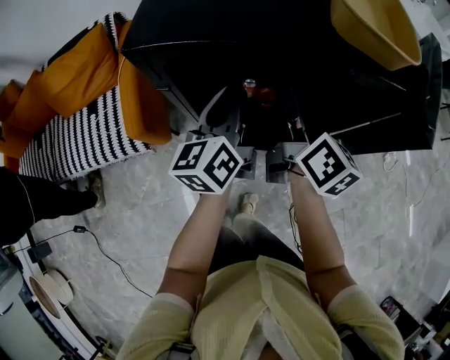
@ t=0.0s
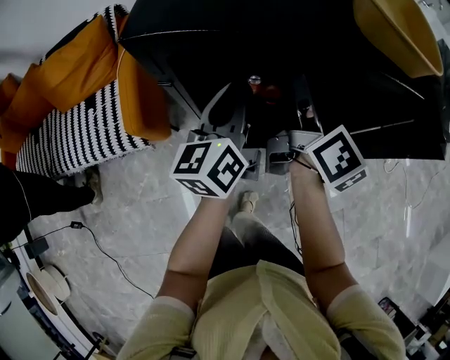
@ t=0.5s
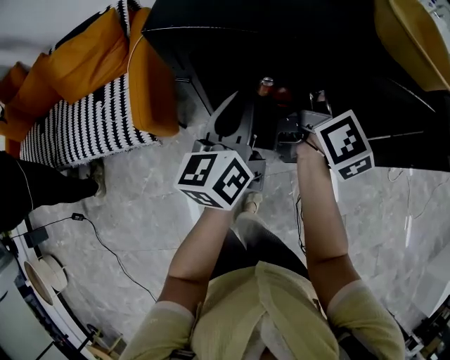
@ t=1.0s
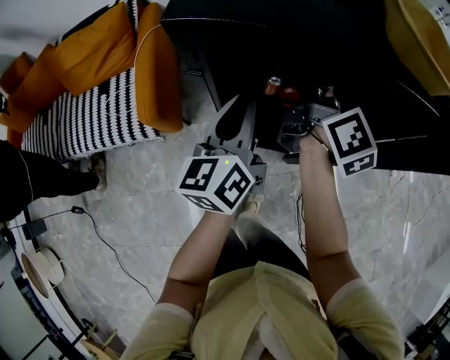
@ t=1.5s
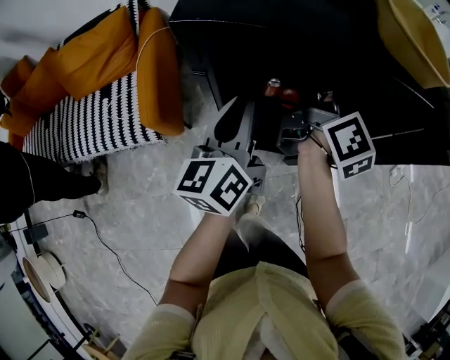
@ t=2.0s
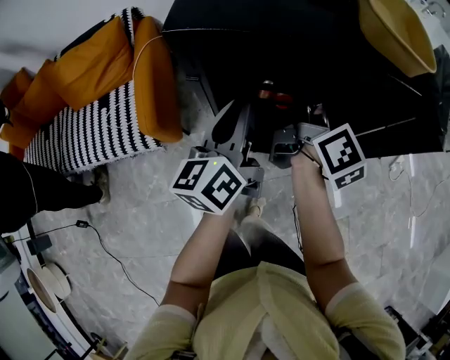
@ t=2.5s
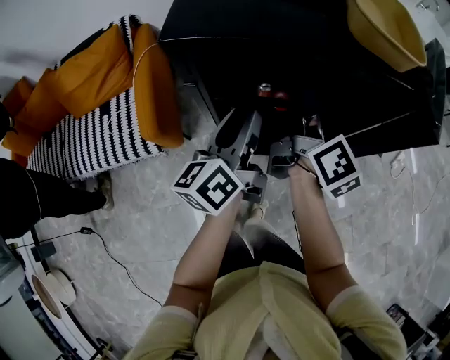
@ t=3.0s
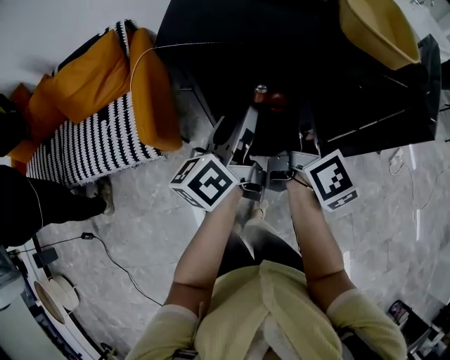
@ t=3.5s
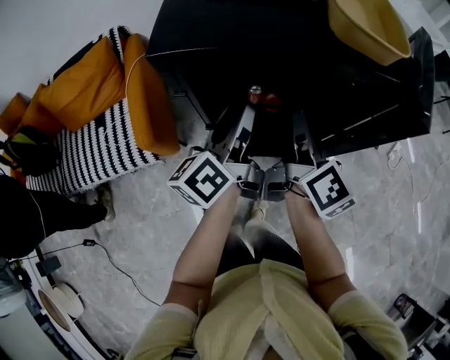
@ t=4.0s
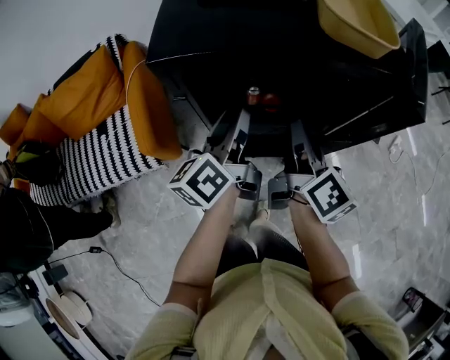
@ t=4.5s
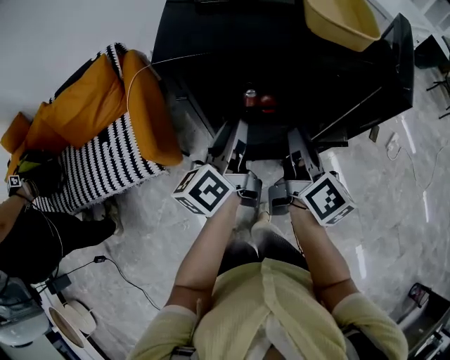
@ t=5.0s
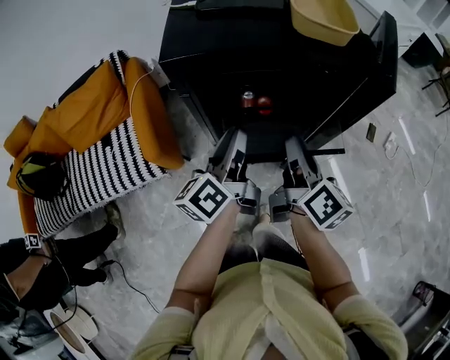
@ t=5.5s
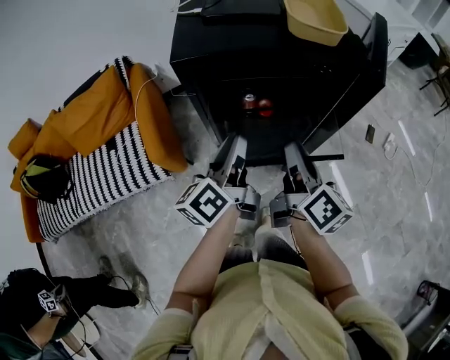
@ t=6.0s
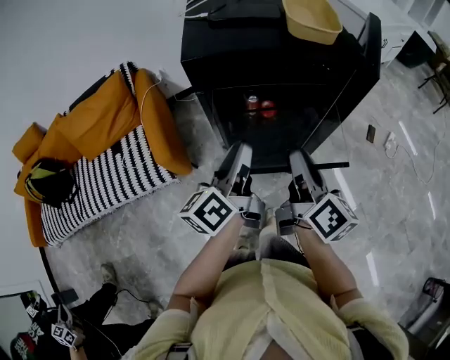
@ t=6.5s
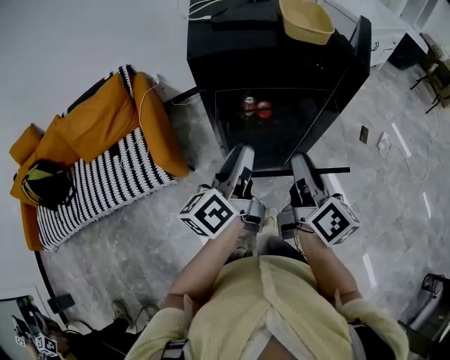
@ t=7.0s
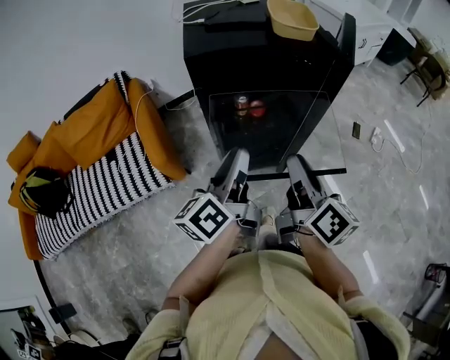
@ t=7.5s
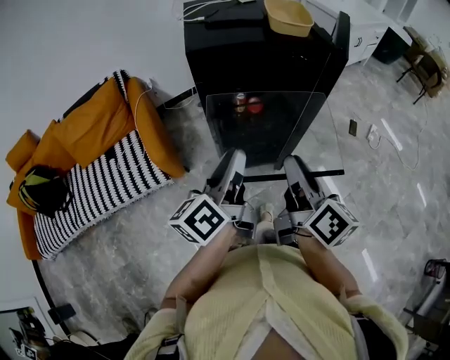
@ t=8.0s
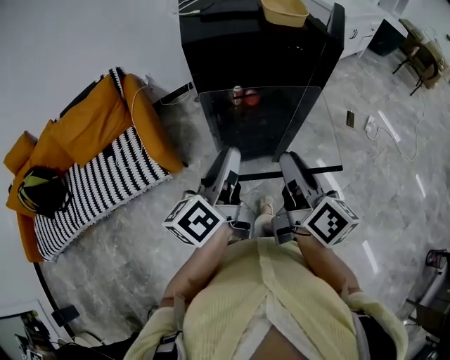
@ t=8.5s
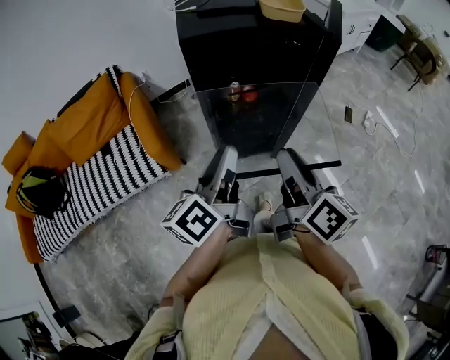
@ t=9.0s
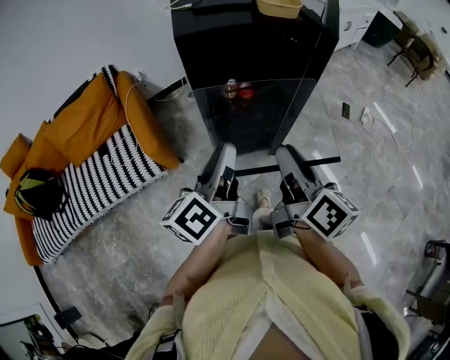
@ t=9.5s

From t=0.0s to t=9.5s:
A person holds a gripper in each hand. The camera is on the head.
From t=0.0s to t=2.0s: The left gripper changes place by roughly 5 cm.
From t=2.0s to t=4.0s: The right gripper heads backward, covering roughly 10 cm, while the left gripper rotates about 20 degrees, and opens its fingers.
From t=4.0s to t=5.5s: The grippers both shift backward by approximately 10 cm.
From t=5.5s to t=7.5s: The grippers both shift backward and upward by some 15 cm.
From t=7.5s to t=9.5s: The grippers stay close to where they were, moving slightly.

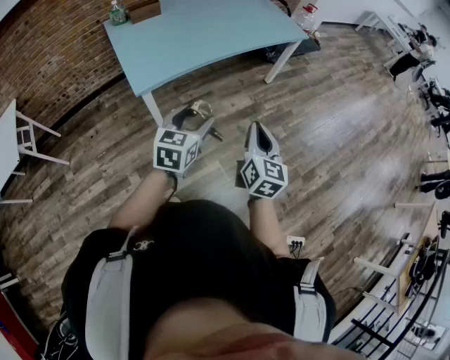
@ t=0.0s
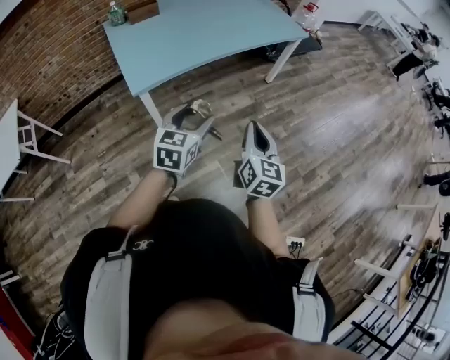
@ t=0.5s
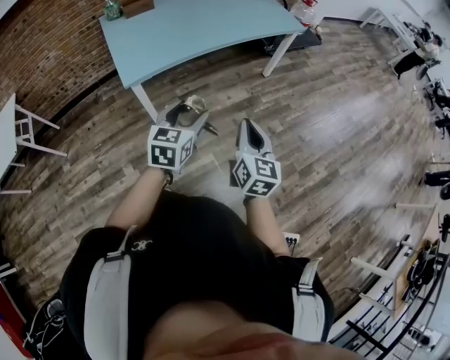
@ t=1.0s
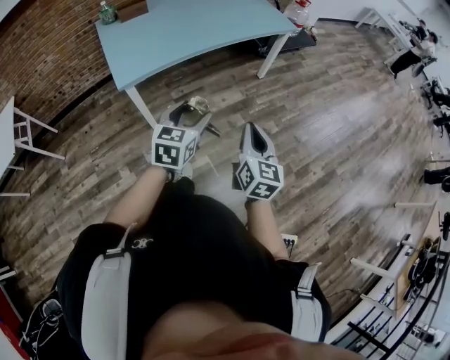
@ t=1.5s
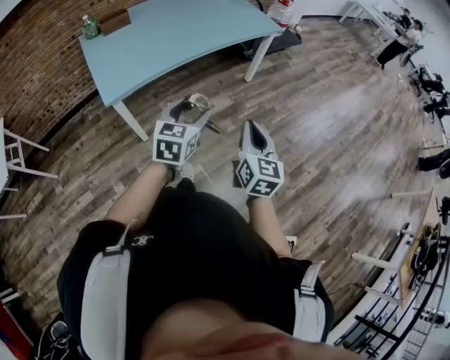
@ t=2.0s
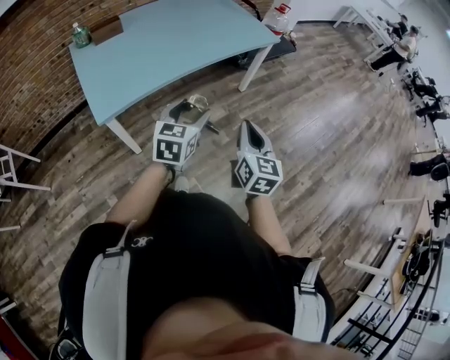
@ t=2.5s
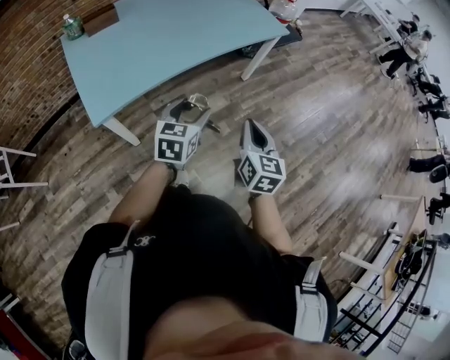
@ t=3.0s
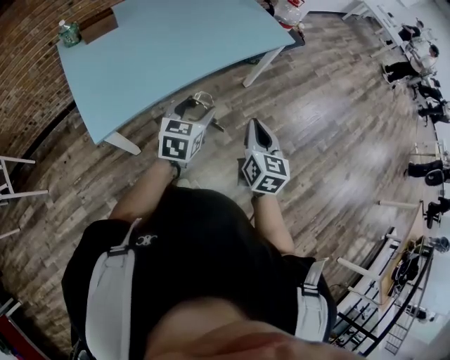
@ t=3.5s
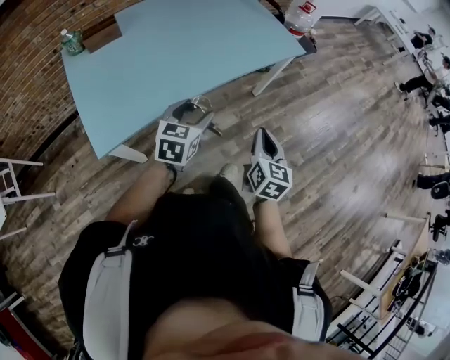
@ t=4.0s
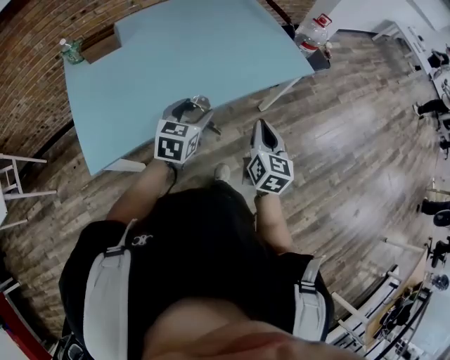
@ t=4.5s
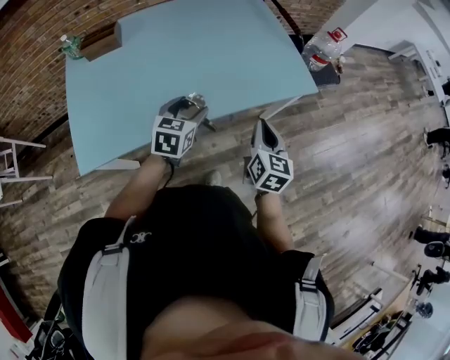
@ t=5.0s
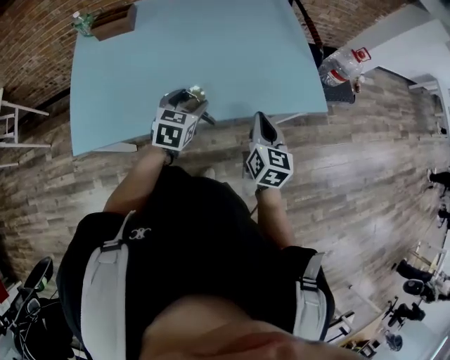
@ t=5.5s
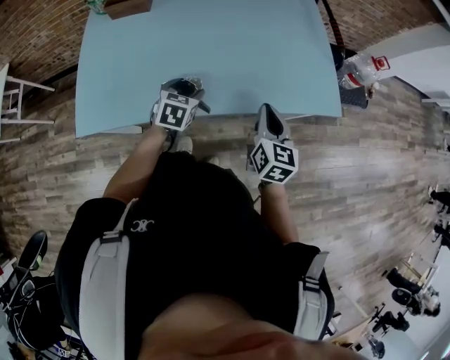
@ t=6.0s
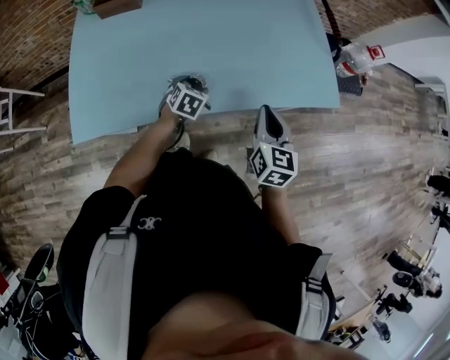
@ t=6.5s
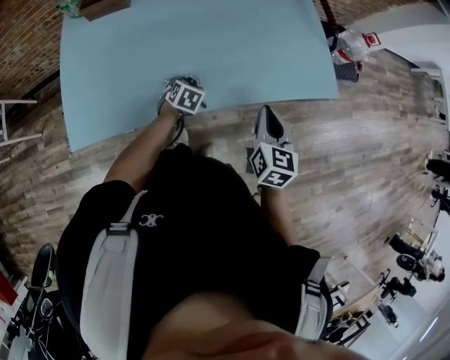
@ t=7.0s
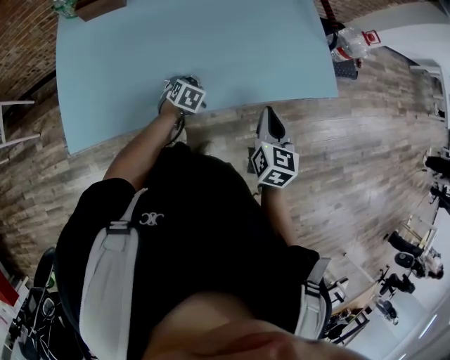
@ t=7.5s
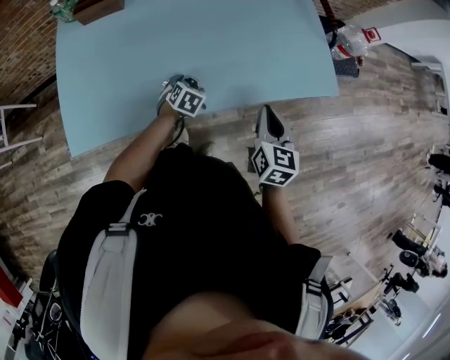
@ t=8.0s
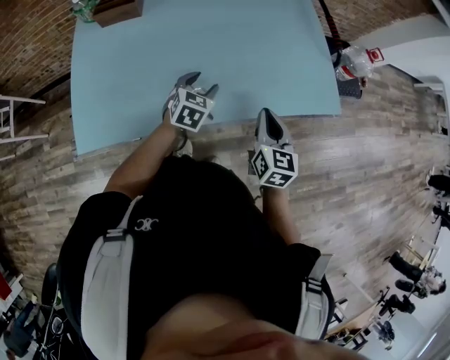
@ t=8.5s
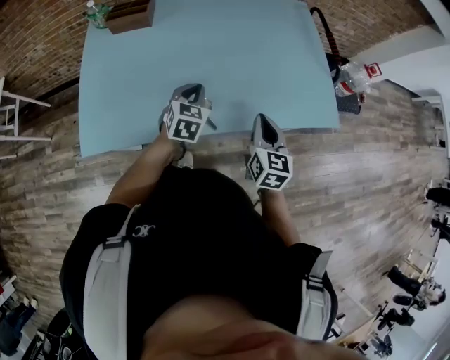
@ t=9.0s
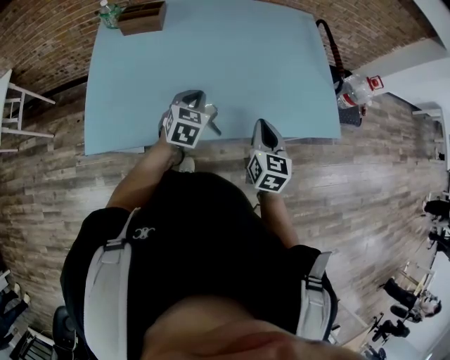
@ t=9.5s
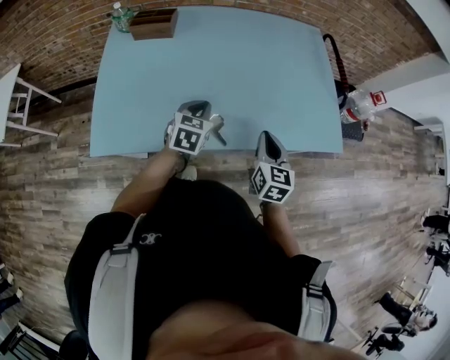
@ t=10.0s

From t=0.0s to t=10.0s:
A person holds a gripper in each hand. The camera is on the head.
From t=0.0s to t=2.0s: The grippers both shift to the right by approximately 10 cm.
From t=2.0s to t=4.0s: The grippers both shift forward by approximately 25 cm.
From t=4.0s to t=6.0s: The left gripper moves about 25 cm, and turns by approximately 30 degrees, while the right gripper changes place by approximately 30 cm, and rotates roughly 30 degrees.
From t=6.0s to t=8.0s: The left gripper moves downward, roughly 15 cm.
From t=8.0s to t=10.0s: The right gripper shifts some 5 cm to the left. Meanwhile the left gripper shifts some 20 cm upward, swivels some 30 degrees, and closes.

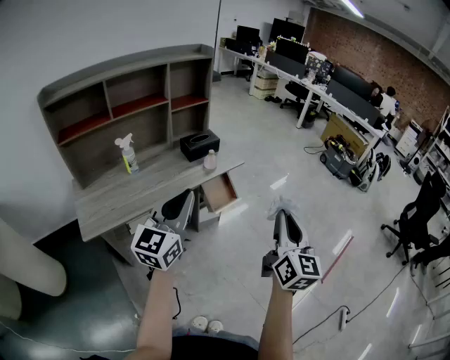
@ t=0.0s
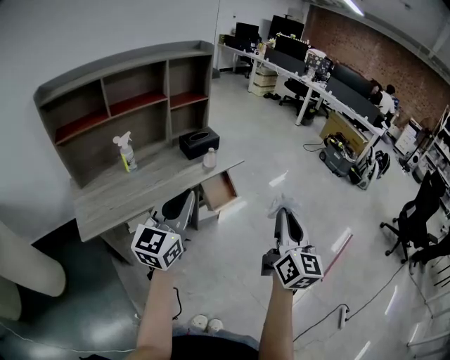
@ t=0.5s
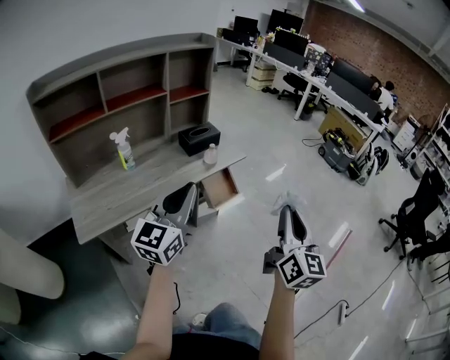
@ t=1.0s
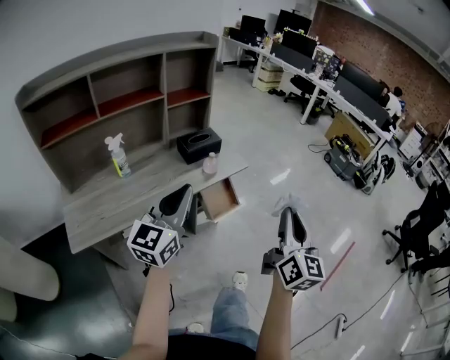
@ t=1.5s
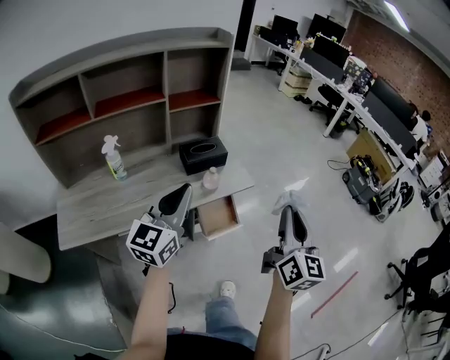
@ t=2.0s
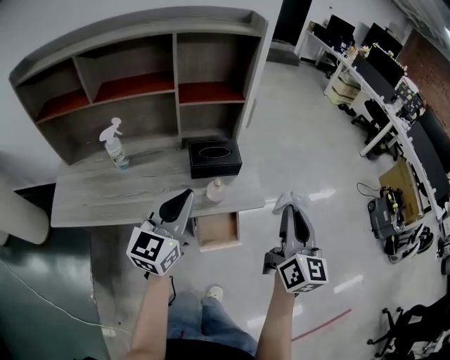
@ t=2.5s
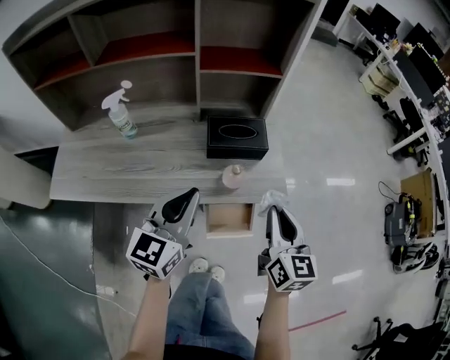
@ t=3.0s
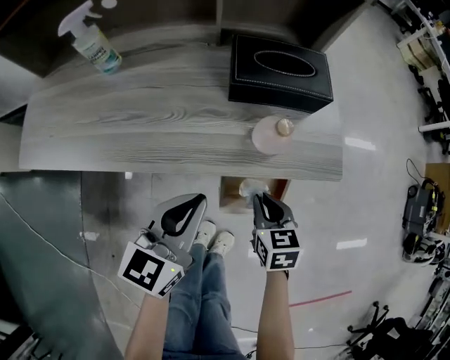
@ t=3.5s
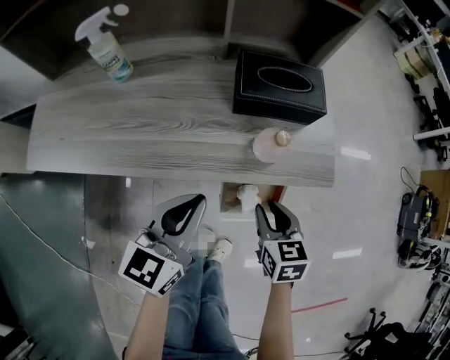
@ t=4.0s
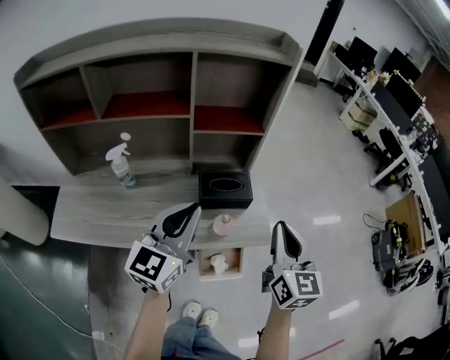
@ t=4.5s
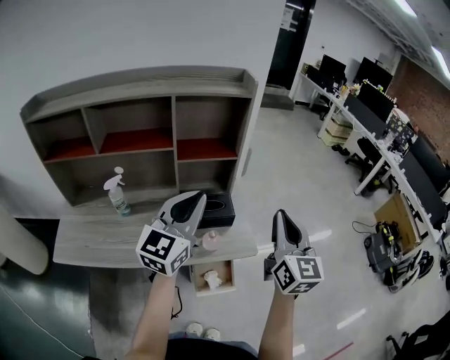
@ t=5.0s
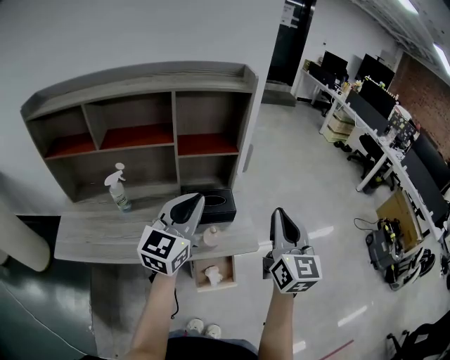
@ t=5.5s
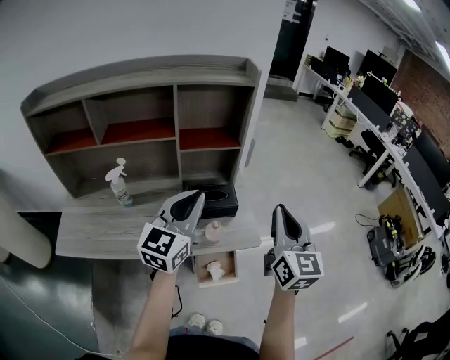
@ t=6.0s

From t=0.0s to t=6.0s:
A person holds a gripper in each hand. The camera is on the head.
From t=0.0s to t=2.0s: Both grippers move forward, about 25 cm.
From t=2.0s to t=4.0s: The two grippers go roughly 35 cm downward. The right gripper points its fingers approximately 50 degrees further downward, and opens its fingers. The left gripper rotates roughly 30 degrees.
From t=4.0s to t=6.0s: Both grippers travel together upward, approximately 40 cm. The right gripper points its fingers roughly 50 degrees further upward, and closes its fingers. Meanwhile the left gripper rotates approximately 30 degrees.

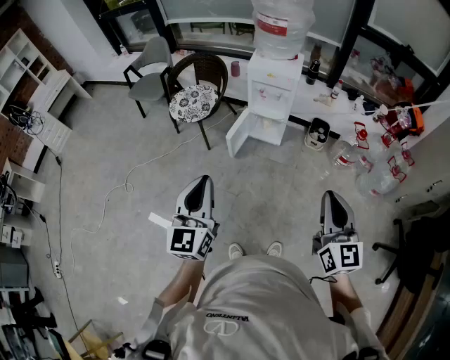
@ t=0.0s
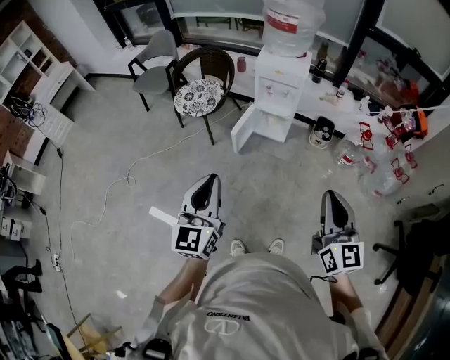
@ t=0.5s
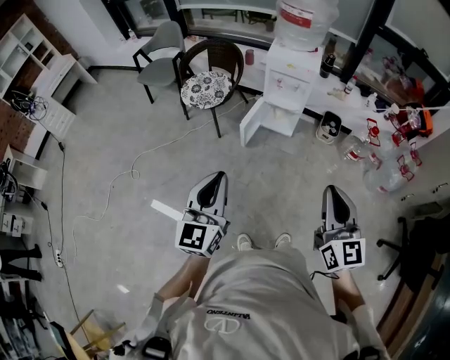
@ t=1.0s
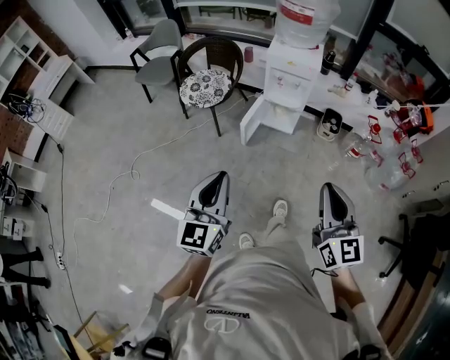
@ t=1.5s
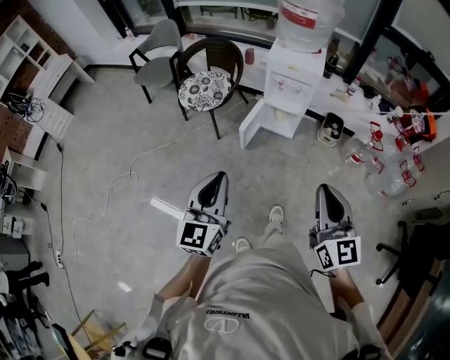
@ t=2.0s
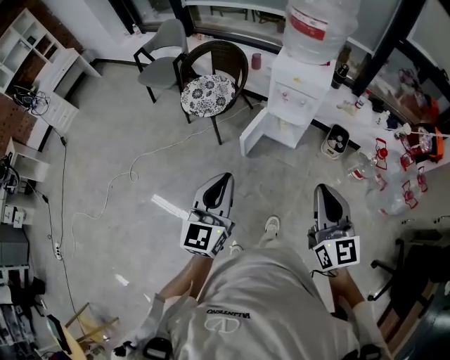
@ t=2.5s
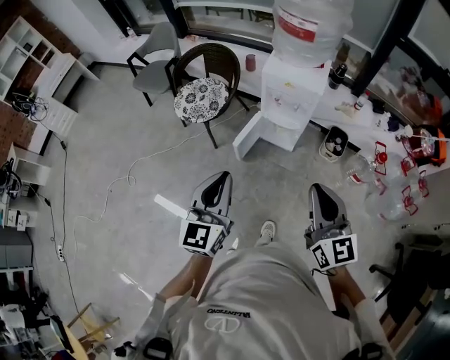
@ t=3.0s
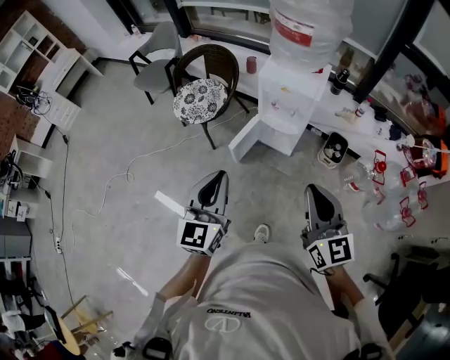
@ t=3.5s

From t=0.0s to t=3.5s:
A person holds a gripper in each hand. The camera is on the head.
From t=0.0s to t=2.0s: The right gripper heads to the left and forward, covering some 10 cm, while the left gripper shifts approximately 5 cm forward.
From t=2.0s to t=3.5s: Both grippers travel together forward and to the right, about 20 cm.
